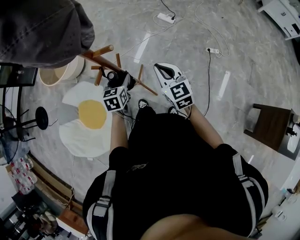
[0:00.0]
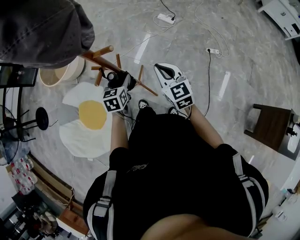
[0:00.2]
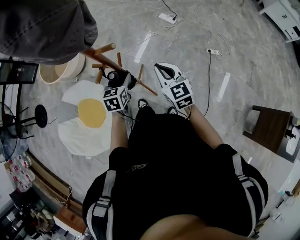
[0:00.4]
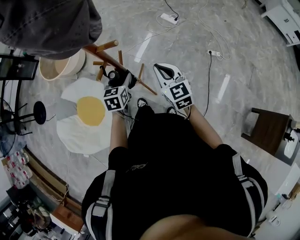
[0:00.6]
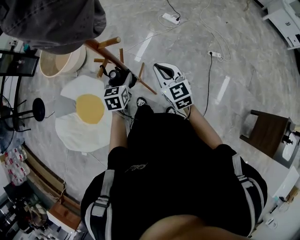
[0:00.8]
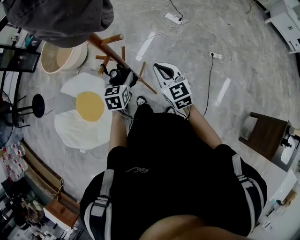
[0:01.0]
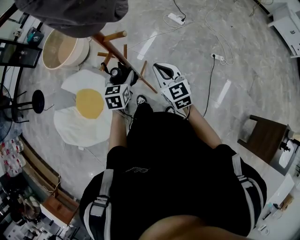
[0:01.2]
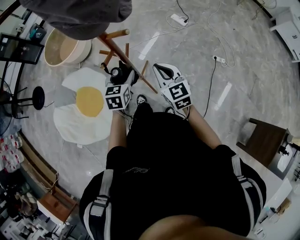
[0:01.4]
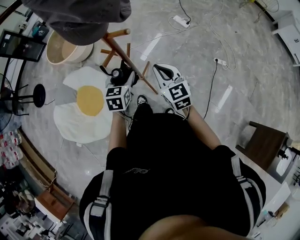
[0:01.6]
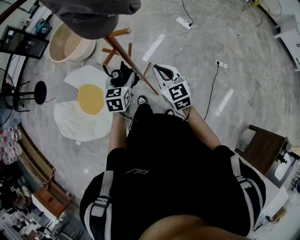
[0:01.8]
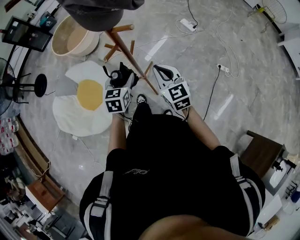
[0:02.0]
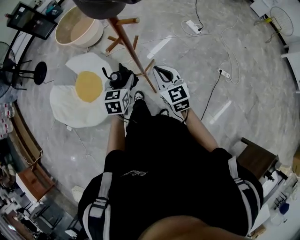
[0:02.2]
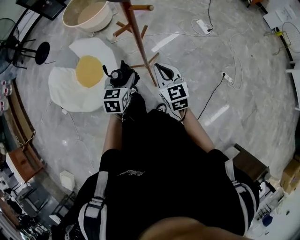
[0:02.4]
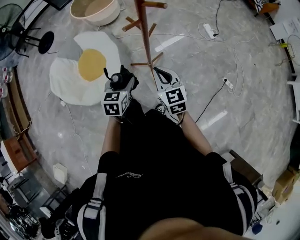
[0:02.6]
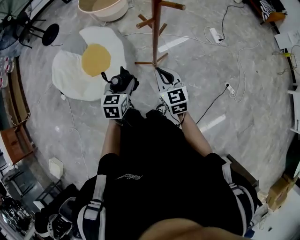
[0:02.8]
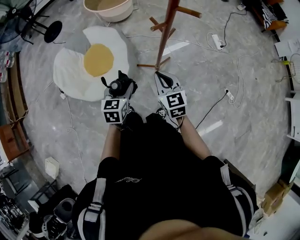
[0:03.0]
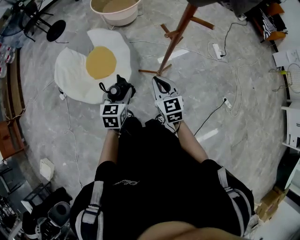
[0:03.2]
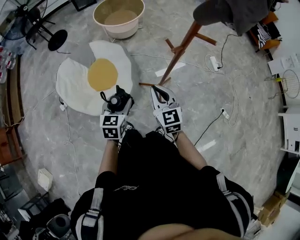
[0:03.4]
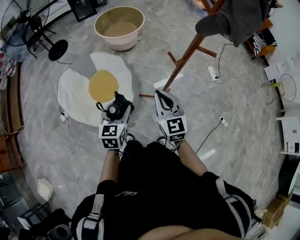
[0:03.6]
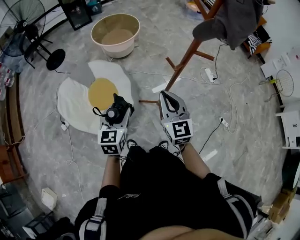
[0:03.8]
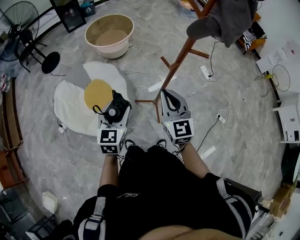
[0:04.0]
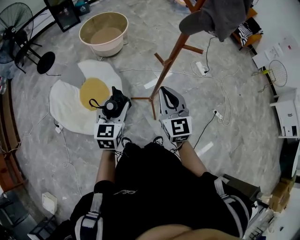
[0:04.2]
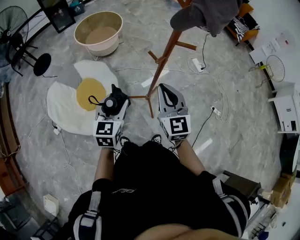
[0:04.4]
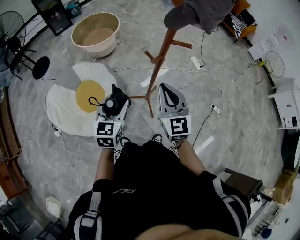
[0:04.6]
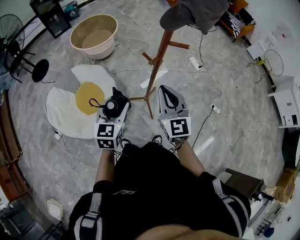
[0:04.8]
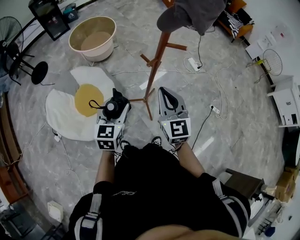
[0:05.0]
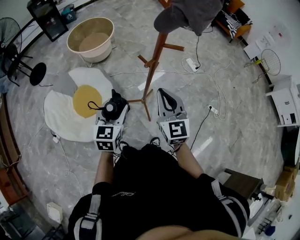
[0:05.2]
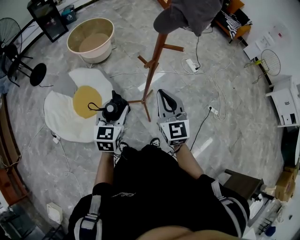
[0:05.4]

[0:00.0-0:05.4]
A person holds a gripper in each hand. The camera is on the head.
0:00.0 to 0:01.4: The grippers stay close to where they were, moving slightly.
0:01.4 to 0:02.8: The left gripper goes approximately 20 cm backward and to the left, and turns by roughly 20 degrees. Meanwhile the right gripper shifts about 10 cm to the left and backward, and rotates approximately 20 degrees.
0:02.8 to 0:04.0: The grippers both shift upward and to the left by roughly 20 cm. The right gripper swivels about 20 degrees.
0:04.0 to 0:05.4: Both grippers travel together to the right, some 10 cm.

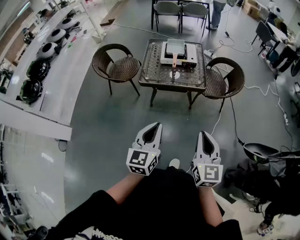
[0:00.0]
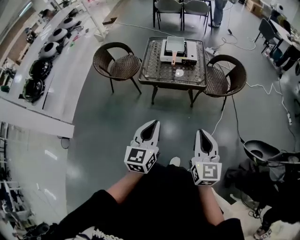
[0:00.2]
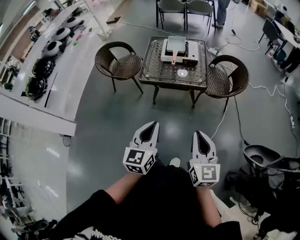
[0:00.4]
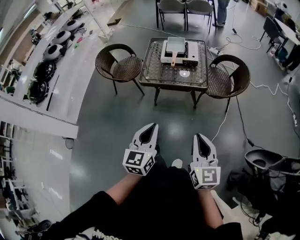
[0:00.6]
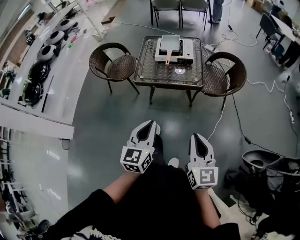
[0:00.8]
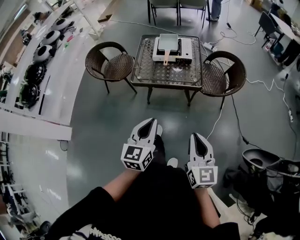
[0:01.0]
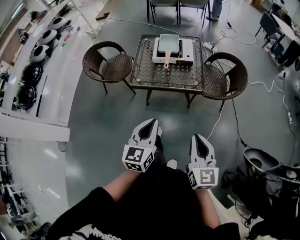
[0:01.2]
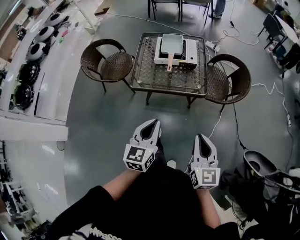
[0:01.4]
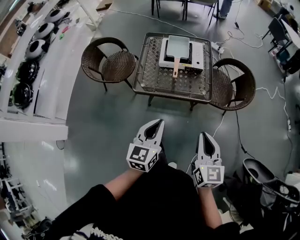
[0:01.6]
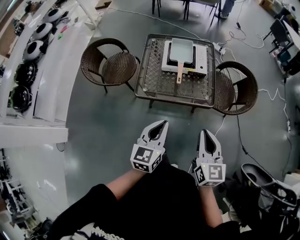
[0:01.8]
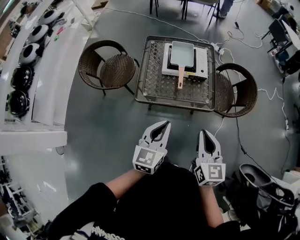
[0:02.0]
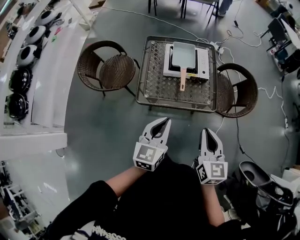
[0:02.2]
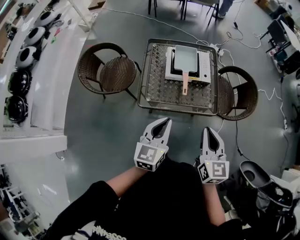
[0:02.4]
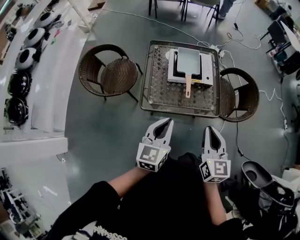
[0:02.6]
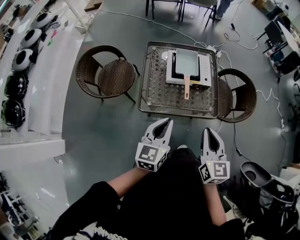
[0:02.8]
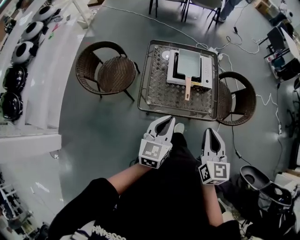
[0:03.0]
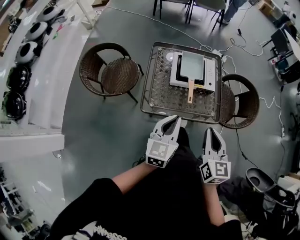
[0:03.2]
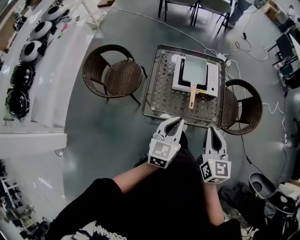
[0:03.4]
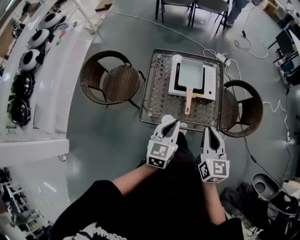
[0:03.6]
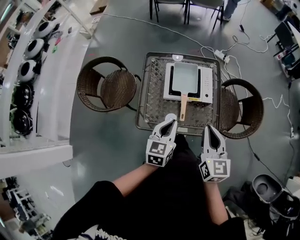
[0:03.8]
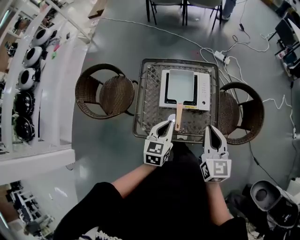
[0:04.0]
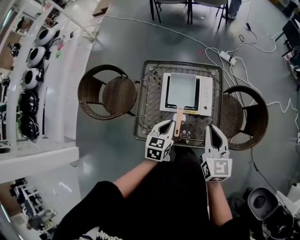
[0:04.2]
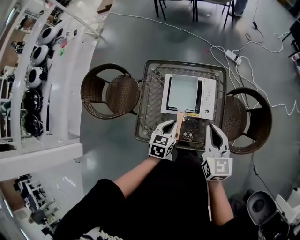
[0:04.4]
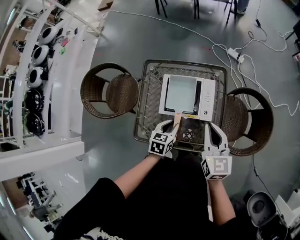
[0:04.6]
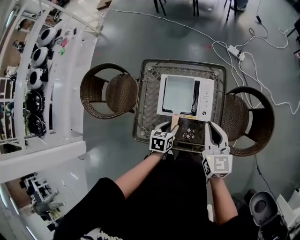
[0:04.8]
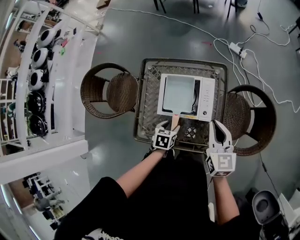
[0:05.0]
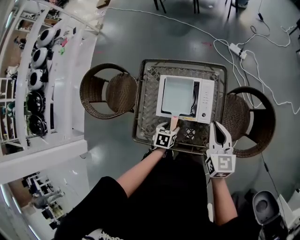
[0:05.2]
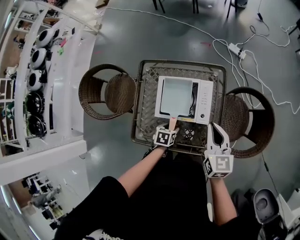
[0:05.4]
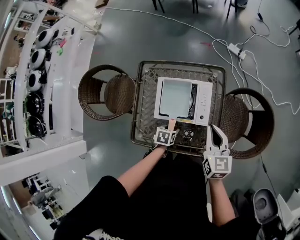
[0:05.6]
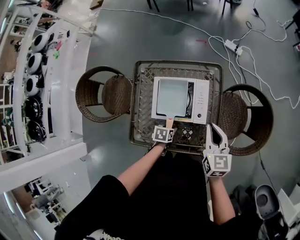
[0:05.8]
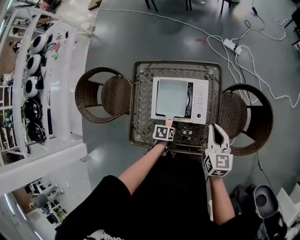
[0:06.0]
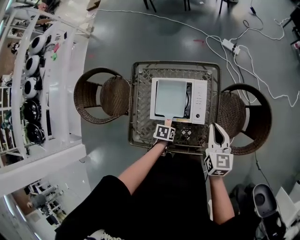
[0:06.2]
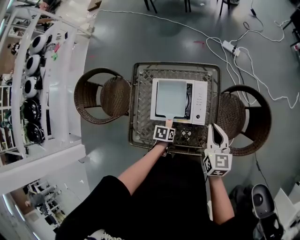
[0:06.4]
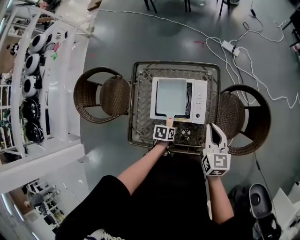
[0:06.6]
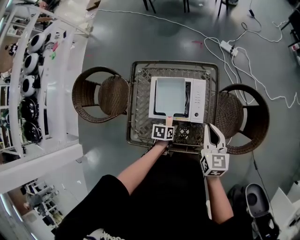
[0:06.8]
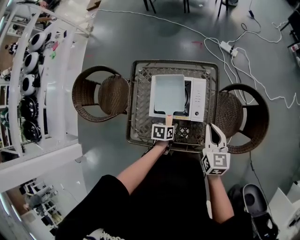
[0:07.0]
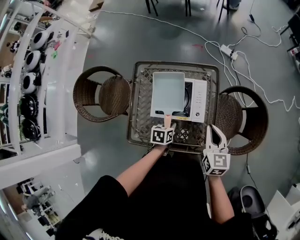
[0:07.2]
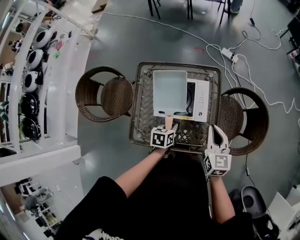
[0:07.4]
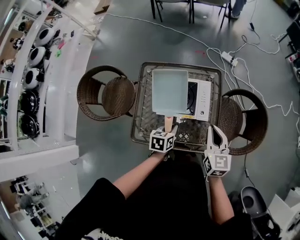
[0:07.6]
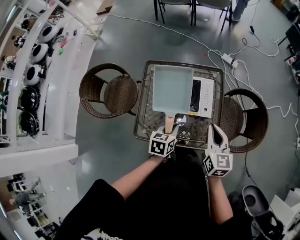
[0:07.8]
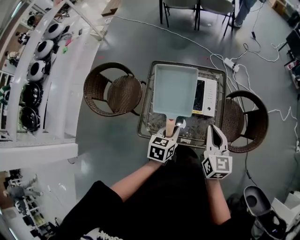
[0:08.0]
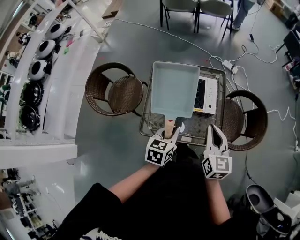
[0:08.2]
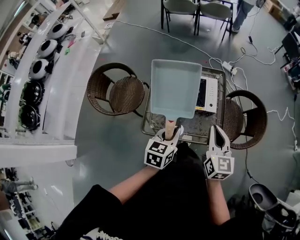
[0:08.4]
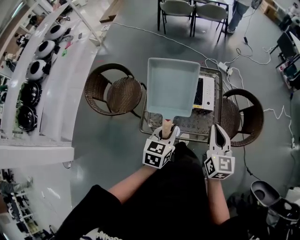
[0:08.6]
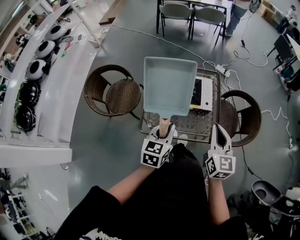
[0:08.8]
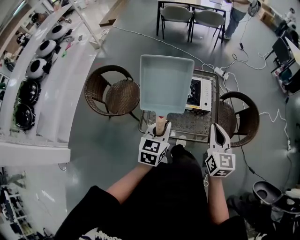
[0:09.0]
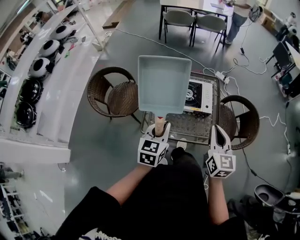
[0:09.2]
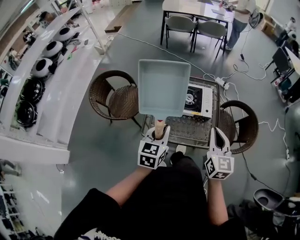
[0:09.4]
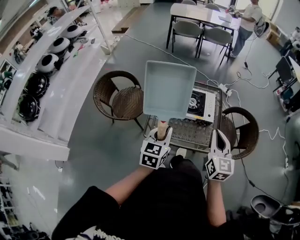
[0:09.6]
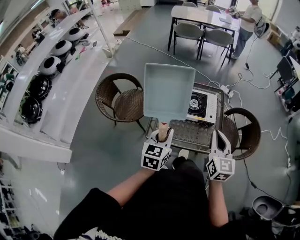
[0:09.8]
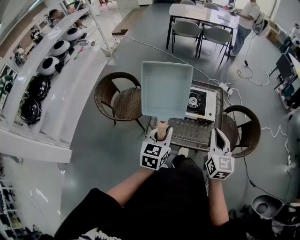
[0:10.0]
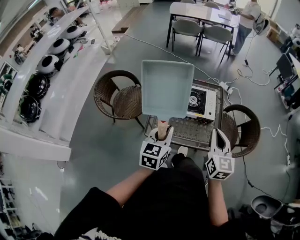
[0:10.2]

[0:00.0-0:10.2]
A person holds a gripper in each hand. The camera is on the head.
0:00.0 to 0:01.4: Both grippers travel together forward, approximately 20 cm.
0:01.4 to 0:03.0: Both grippers travel together forward and to the left, roughly 25 cm.
0:03.0 to 0:04.4: The right gripper is displaced forward by some 30 cm. Meanwhile the left gripper moves forward and downward, roughly 30 cm, and rotates about 30 degrees.
0:04.4 to 0:05.8: The left gripper heads downward, covering about 20 cm, rotates approximately 40 degrees, and opens, while the right gripper travels downward, forward and to the right by approximately 15 cm.
0:05.8 to 0:07.2: The left gripper goes roughly 5 cm upward, and closes.
0:07.2 to 0:08.8: The left gripper goes about 30 cm upward and backward, and swivels about 40 degrees, while the right gripper heads backward and upward, covering roughly 25 cm.
0:08.8 to 0:10.2: The left gripper ends up roughly 10 cm from where it was. The right gripper ends up roughly 5 cm from where it was.

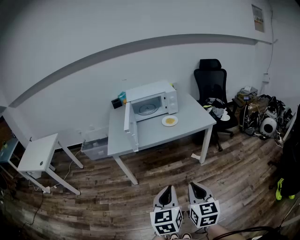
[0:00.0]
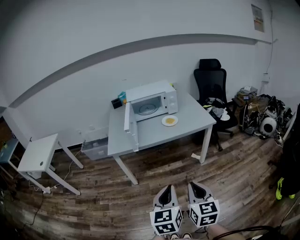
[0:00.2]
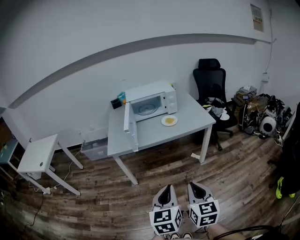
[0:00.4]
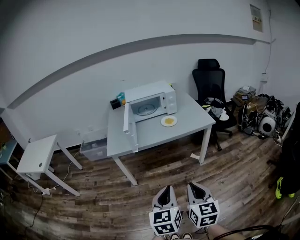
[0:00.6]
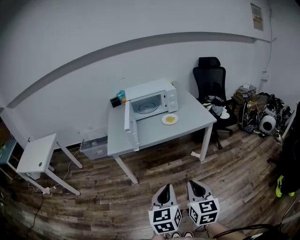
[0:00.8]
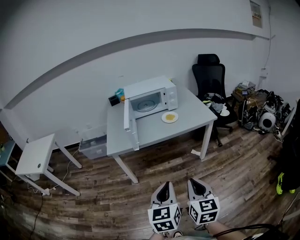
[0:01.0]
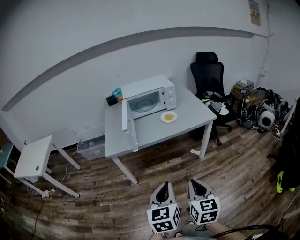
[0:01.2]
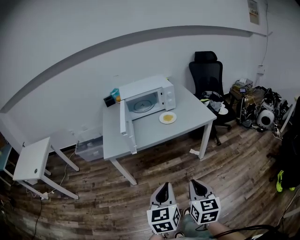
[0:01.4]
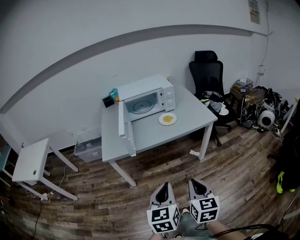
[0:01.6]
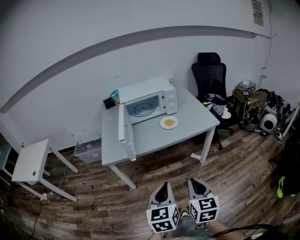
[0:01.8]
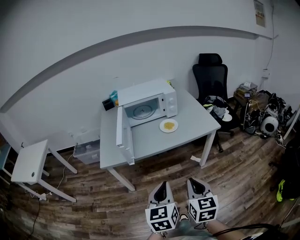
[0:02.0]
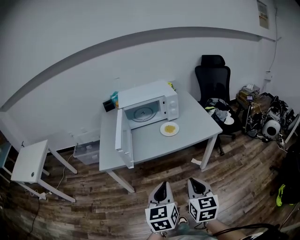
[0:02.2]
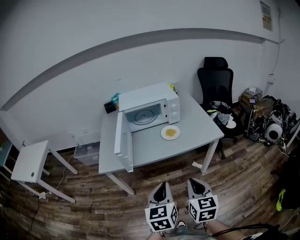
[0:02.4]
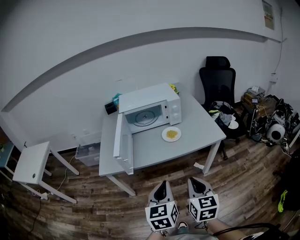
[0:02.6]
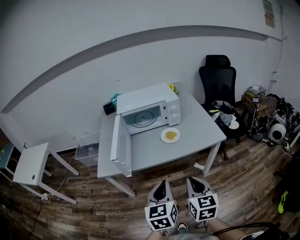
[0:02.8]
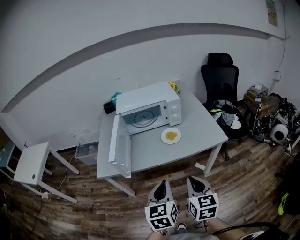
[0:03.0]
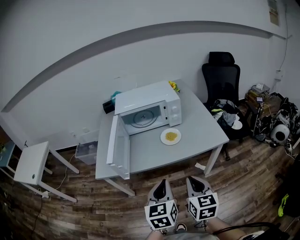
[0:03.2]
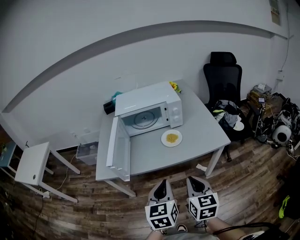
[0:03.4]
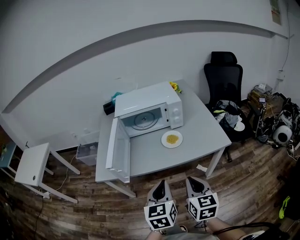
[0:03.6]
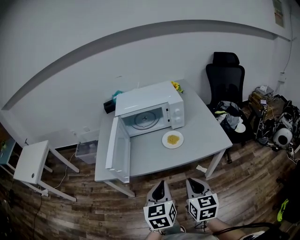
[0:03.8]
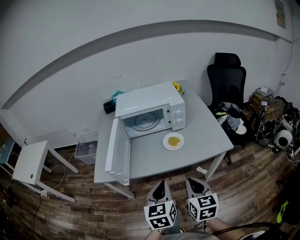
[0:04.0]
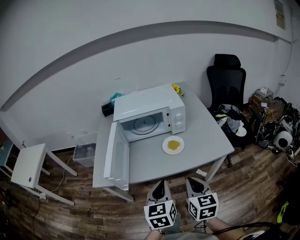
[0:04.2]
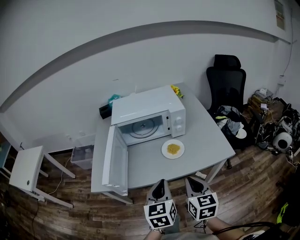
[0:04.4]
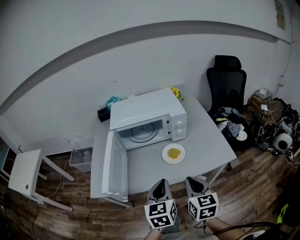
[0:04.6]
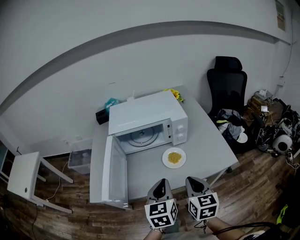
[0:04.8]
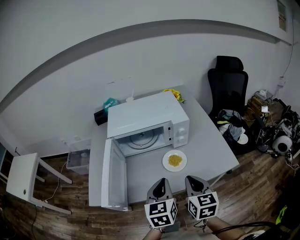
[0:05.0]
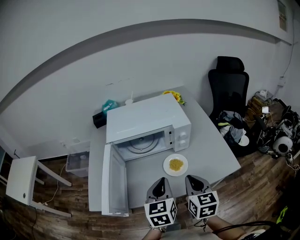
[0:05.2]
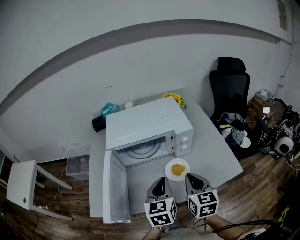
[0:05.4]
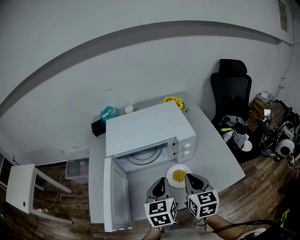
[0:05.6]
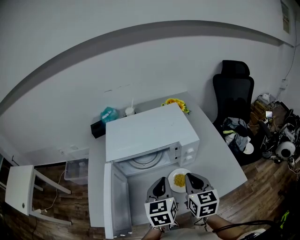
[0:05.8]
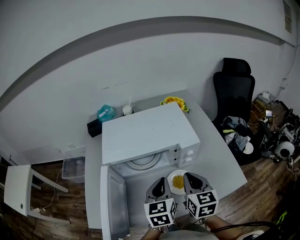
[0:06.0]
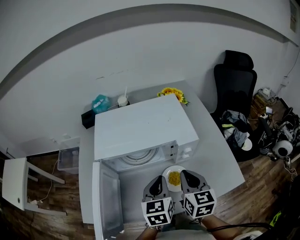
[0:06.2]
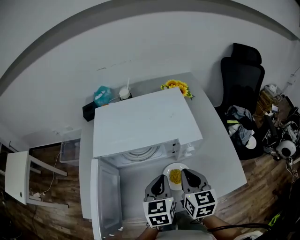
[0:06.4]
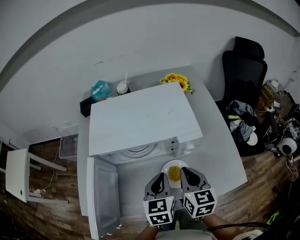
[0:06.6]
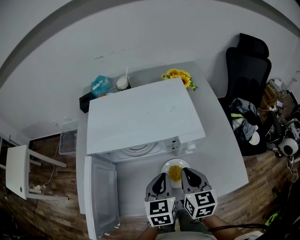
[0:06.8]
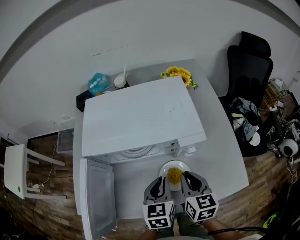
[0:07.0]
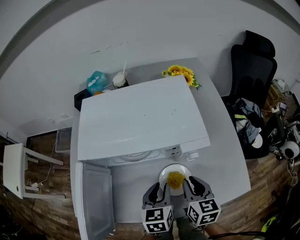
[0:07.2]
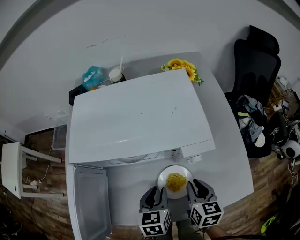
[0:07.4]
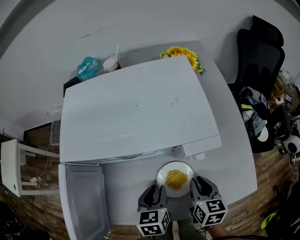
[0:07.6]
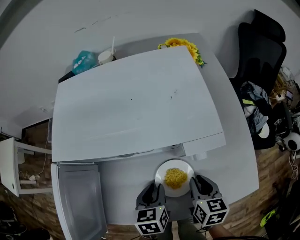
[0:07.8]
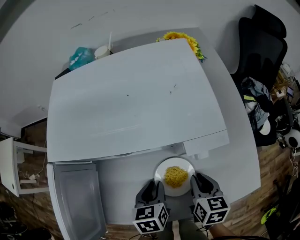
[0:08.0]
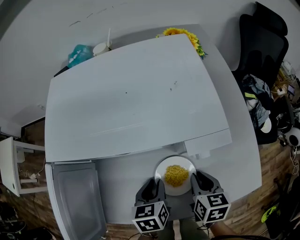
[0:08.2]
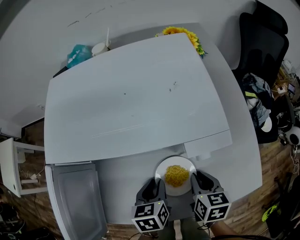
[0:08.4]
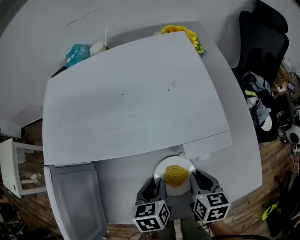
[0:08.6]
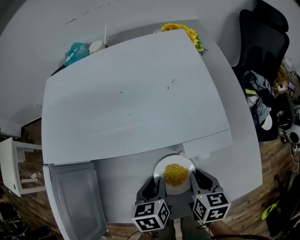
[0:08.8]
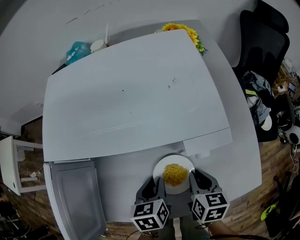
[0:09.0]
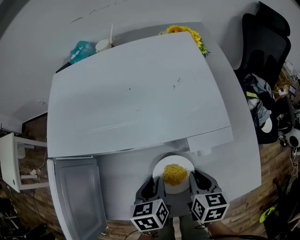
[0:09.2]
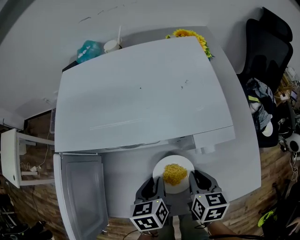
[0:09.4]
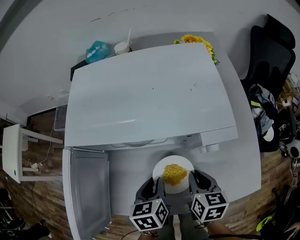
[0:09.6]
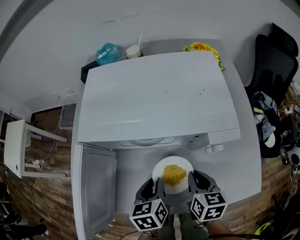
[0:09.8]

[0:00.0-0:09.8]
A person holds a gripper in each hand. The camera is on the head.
0:00.0 to 0:01.4: The two grippers go approximately 5 cm forward.
0:01.4 to 0:02.8: The two grippers go approximately 20 cm forward.
0:02.8 to 0:04.2: Both grippers travel together forward, some 10 cm.
0:04.2 to 0:05.6: Both grippers travel together forward, some 25 cm.
0:05.6 to 0:07.0: Both grippers travel together downward and forward, approximately 10 cm.
0:07.0 to 0:08.4: The grippers both shift downward by some 15 cm. The left gripper changes its angle by approximately 20 degrees, and opens. Meanwhile the right gripper turns by approximately 20 degrees.
0:08.4 to 0:09.8: The grippers both shift to the left and upward by approximately 10 cm.
